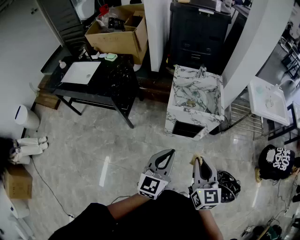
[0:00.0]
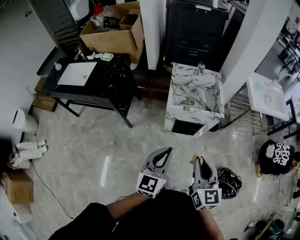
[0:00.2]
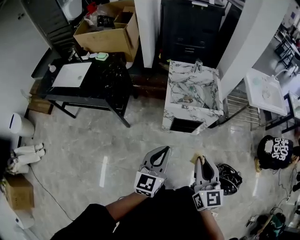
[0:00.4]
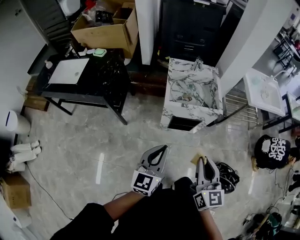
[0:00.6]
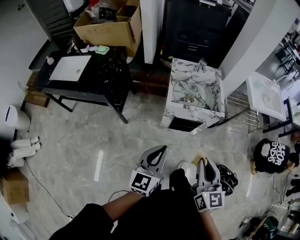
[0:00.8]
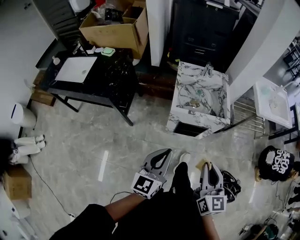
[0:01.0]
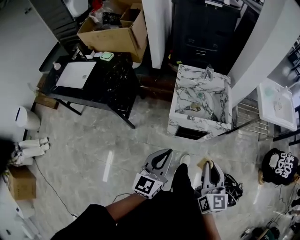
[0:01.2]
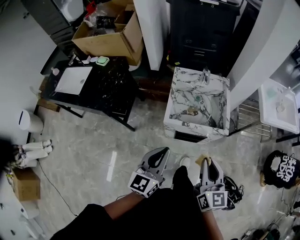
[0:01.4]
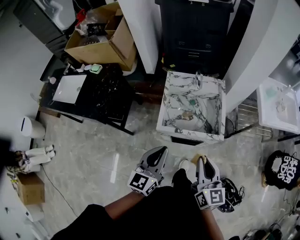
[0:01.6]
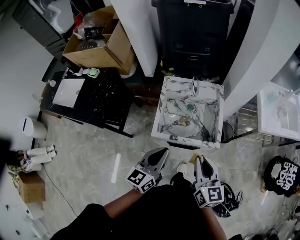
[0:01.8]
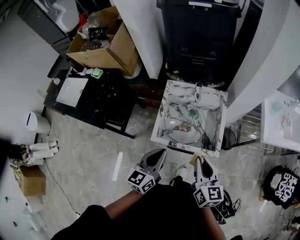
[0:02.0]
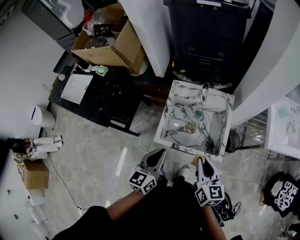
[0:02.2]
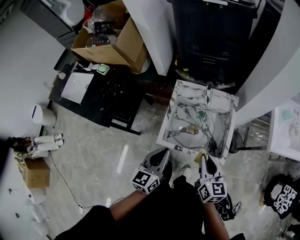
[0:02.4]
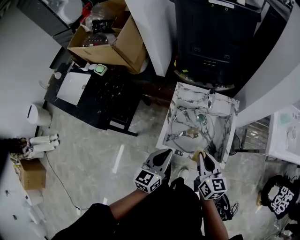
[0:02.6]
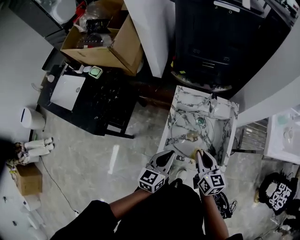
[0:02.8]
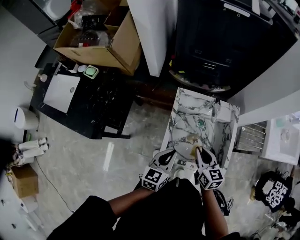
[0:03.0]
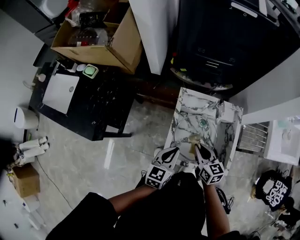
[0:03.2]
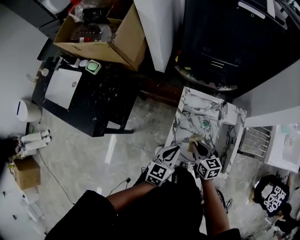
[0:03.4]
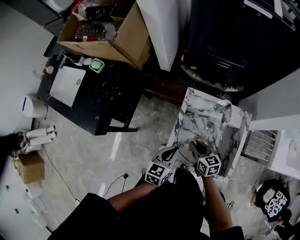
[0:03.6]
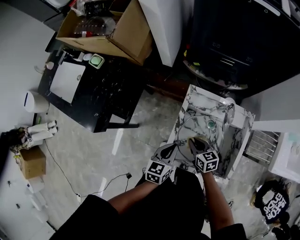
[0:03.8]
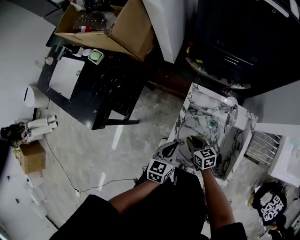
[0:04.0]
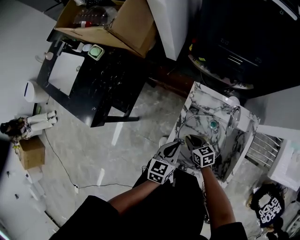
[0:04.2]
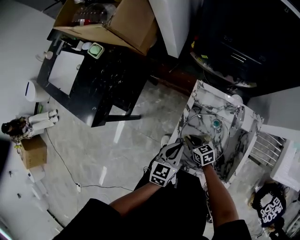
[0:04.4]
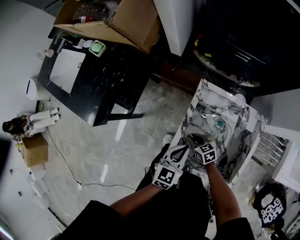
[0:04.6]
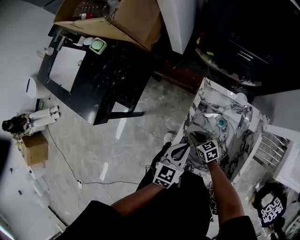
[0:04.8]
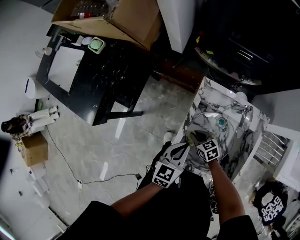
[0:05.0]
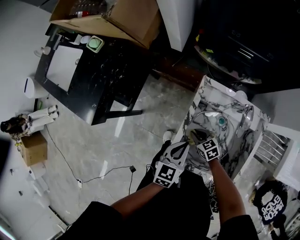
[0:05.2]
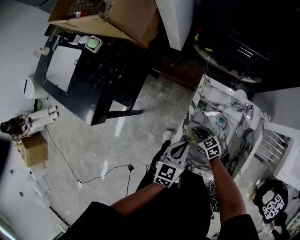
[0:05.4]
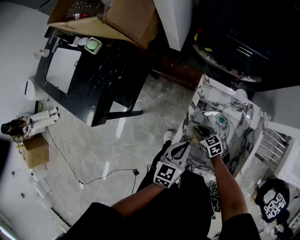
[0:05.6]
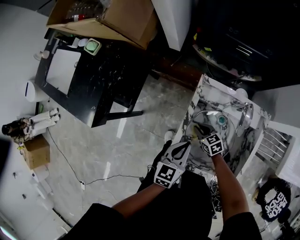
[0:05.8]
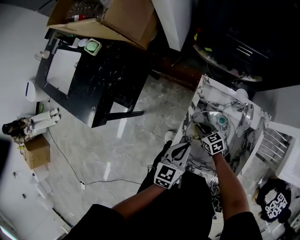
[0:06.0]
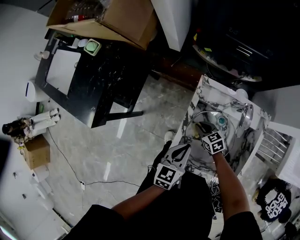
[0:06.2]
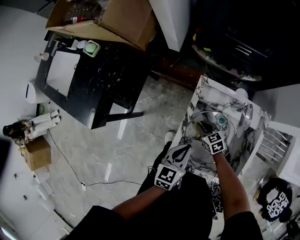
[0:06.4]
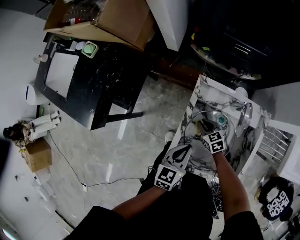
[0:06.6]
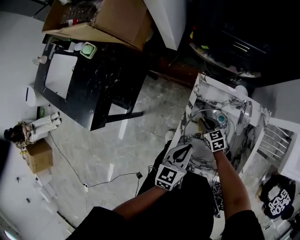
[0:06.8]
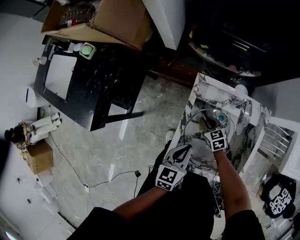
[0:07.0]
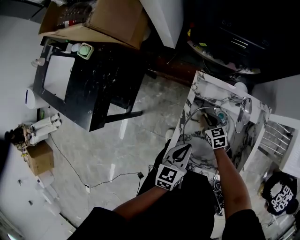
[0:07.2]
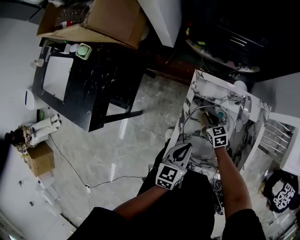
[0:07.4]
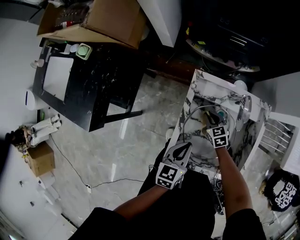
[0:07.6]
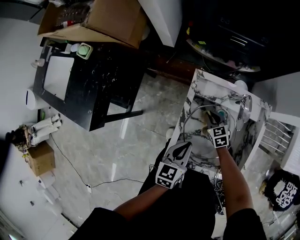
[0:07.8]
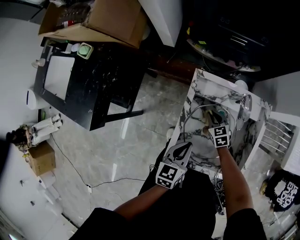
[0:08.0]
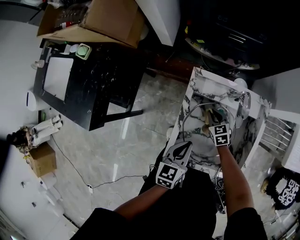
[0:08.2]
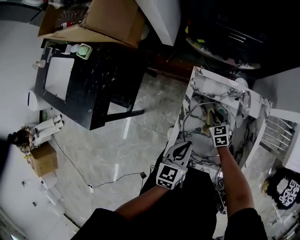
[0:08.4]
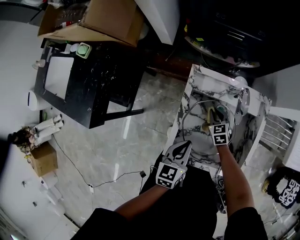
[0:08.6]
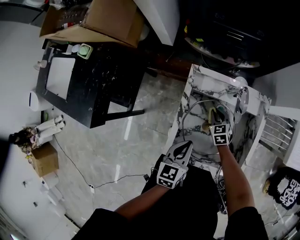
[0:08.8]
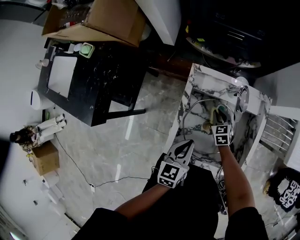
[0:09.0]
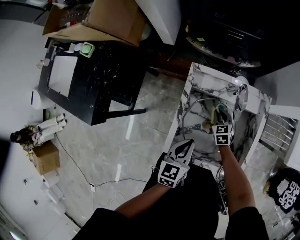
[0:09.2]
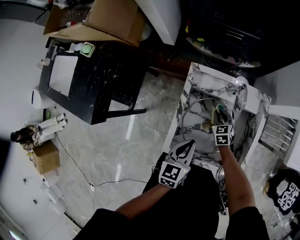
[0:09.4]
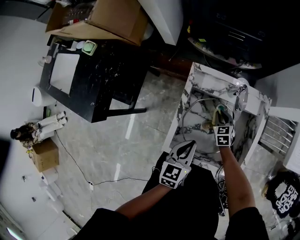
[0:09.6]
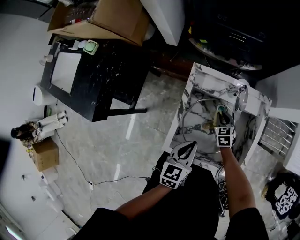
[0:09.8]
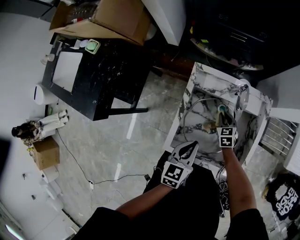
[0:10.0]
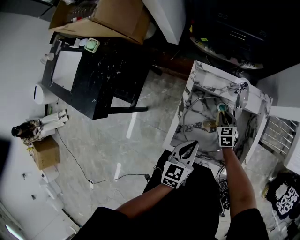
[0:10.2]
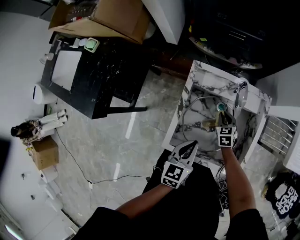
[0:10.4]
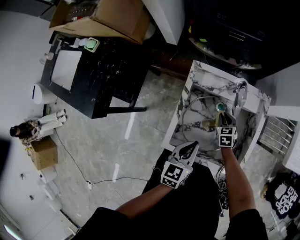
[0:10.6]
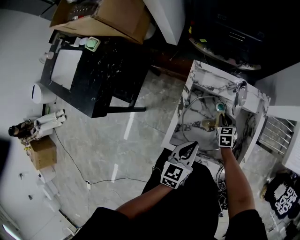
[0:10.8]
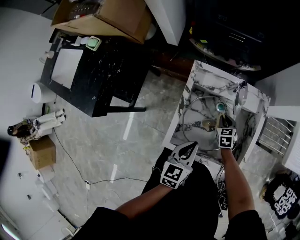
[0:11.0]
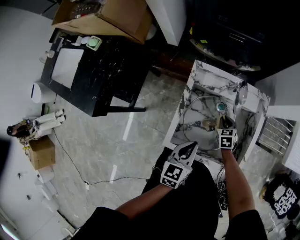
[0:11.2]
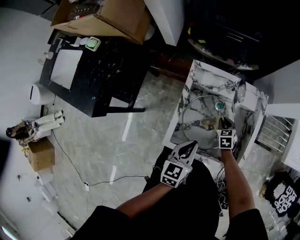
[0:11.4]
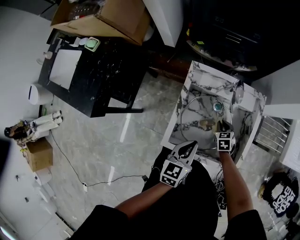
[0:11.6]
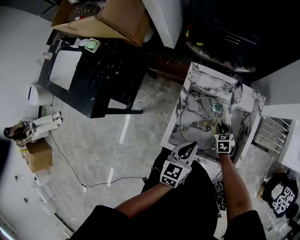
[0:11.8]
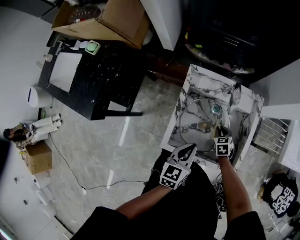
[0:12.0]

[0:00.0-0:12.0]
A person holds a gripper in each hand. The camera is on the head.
0:00.0 to 0:01.6: Both grippers move forward, some 25 cm.
0:01.6 to 0:03.0: The grippers both shift forward and downward by approximately 25 cm. The right gripper changes its angle by roughly 20 degrees.
0:03.0 to 0:04.4: The left gripper heads downward, covering about 10 cm. Meanwhile the right gripper heads downward, covering roughly 20 cm, and changes its angle by approximately 40 degrees.
0:04.4 to 0:06.0: The right gripper shifts by approximately 5 cm.
0:06.0 to 0:07.6: The right gripper heads to the right, covering some 5 cm.
0:07.6 to 0:09.0: The right gripper heads to the right, covering approximately 5 cm.
0:09.0 to 0:10.4: The grippers stay close to where they were, moving slightly.
0:10.4 to 0:12.0: The right gripper goes about 5 cm backward.

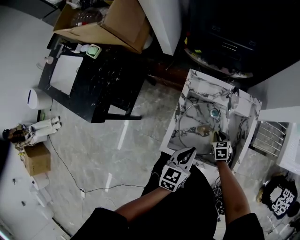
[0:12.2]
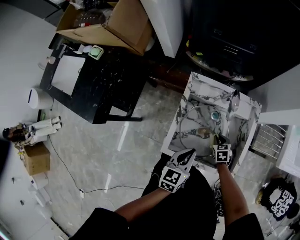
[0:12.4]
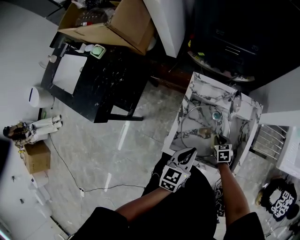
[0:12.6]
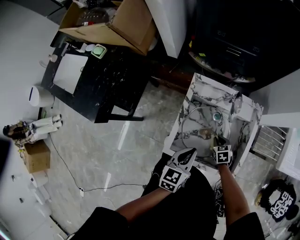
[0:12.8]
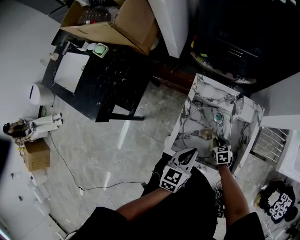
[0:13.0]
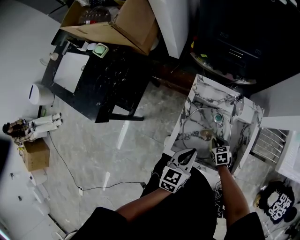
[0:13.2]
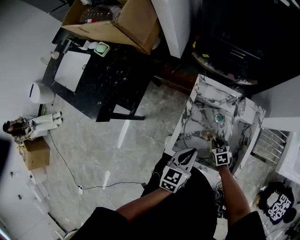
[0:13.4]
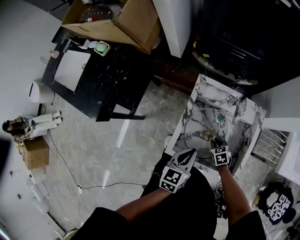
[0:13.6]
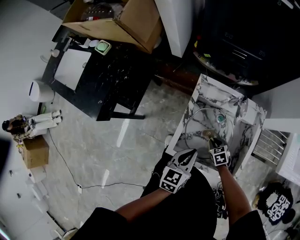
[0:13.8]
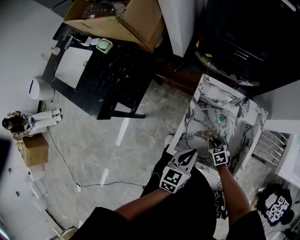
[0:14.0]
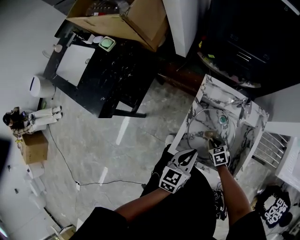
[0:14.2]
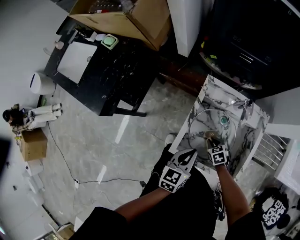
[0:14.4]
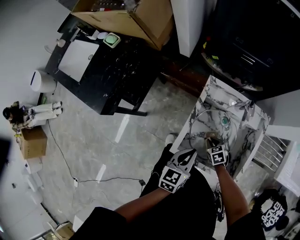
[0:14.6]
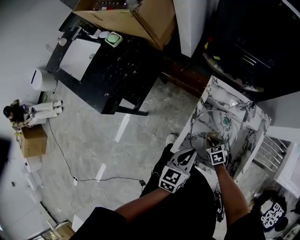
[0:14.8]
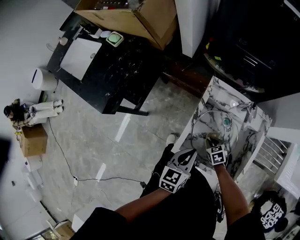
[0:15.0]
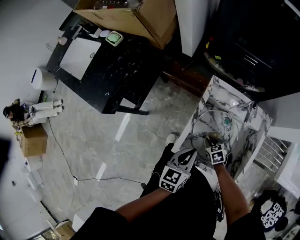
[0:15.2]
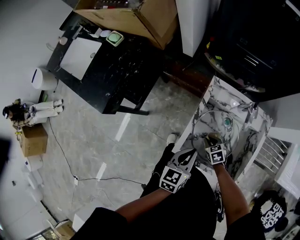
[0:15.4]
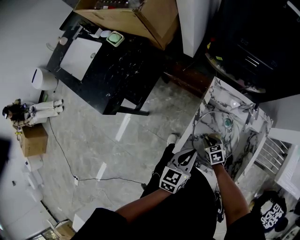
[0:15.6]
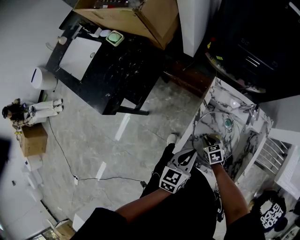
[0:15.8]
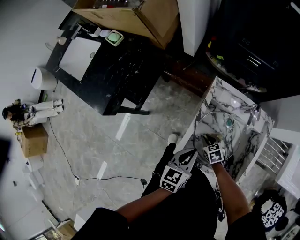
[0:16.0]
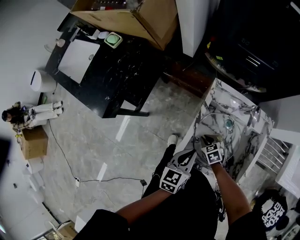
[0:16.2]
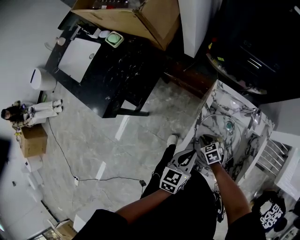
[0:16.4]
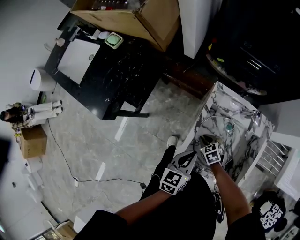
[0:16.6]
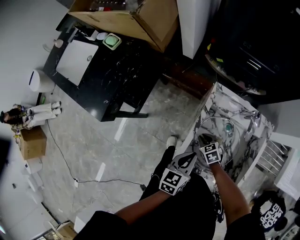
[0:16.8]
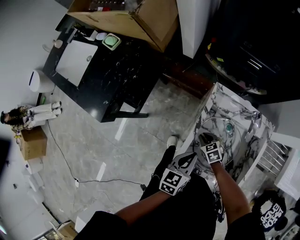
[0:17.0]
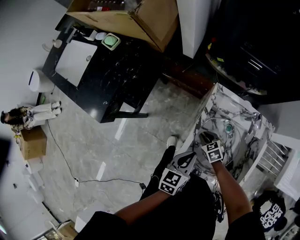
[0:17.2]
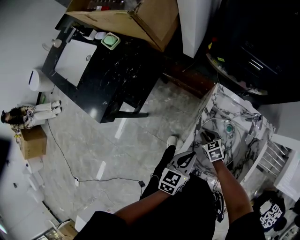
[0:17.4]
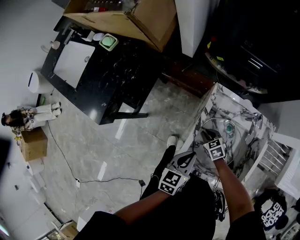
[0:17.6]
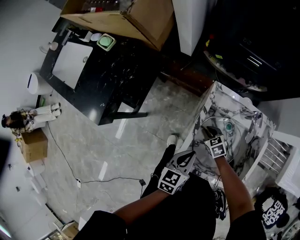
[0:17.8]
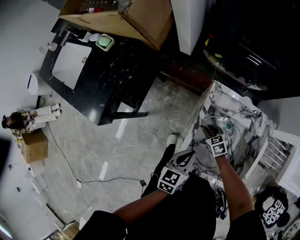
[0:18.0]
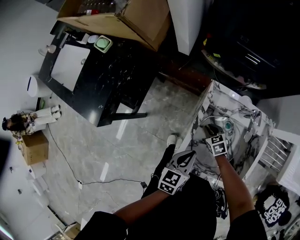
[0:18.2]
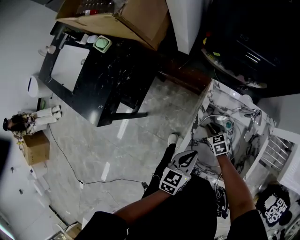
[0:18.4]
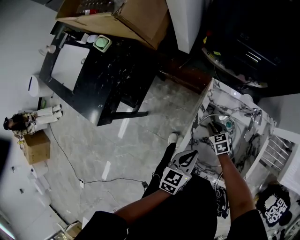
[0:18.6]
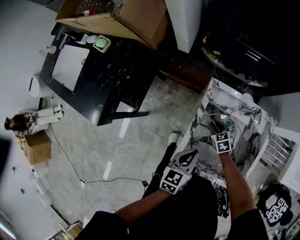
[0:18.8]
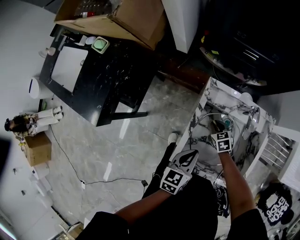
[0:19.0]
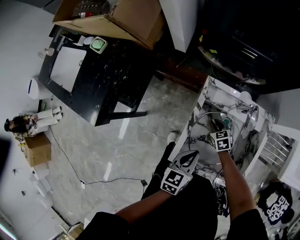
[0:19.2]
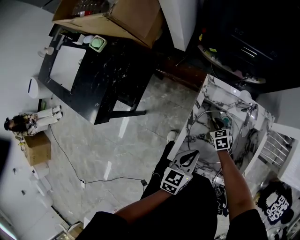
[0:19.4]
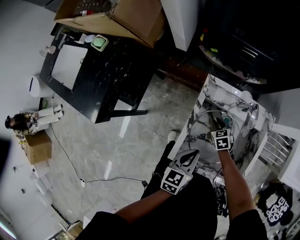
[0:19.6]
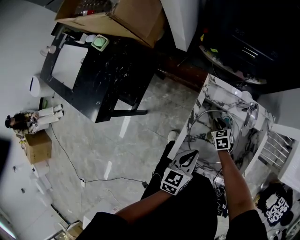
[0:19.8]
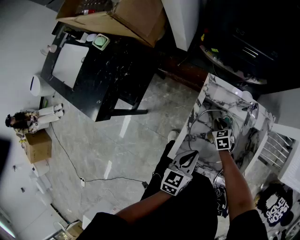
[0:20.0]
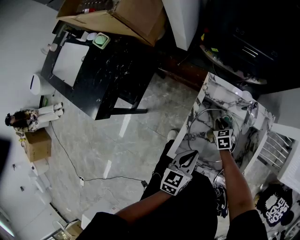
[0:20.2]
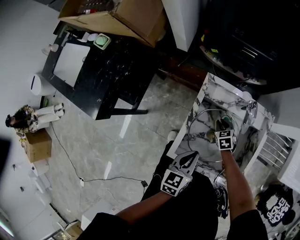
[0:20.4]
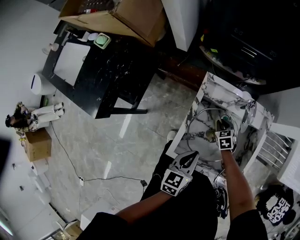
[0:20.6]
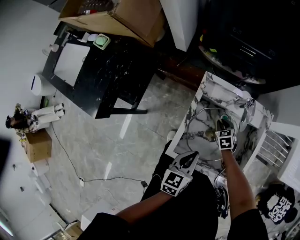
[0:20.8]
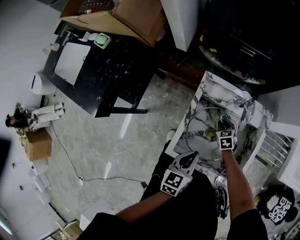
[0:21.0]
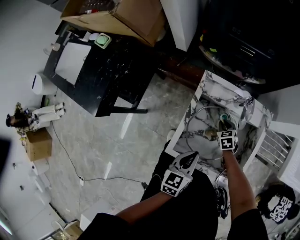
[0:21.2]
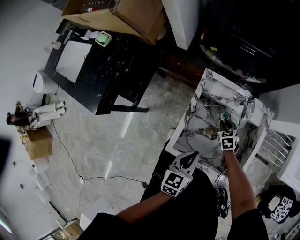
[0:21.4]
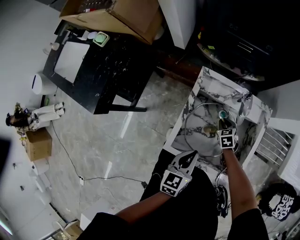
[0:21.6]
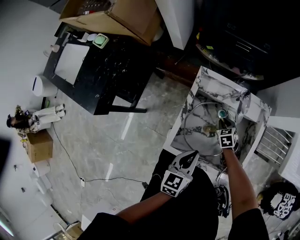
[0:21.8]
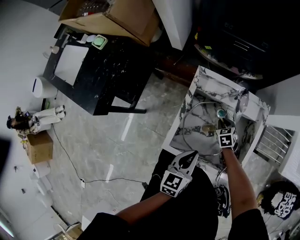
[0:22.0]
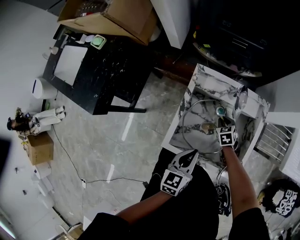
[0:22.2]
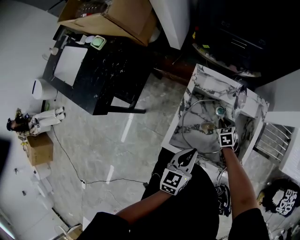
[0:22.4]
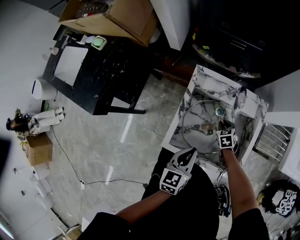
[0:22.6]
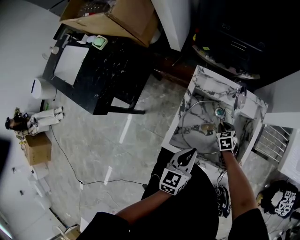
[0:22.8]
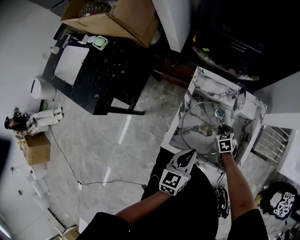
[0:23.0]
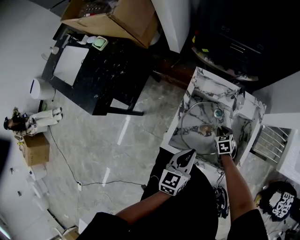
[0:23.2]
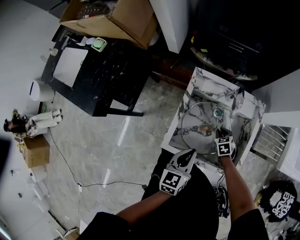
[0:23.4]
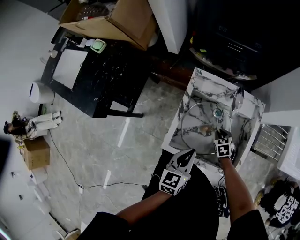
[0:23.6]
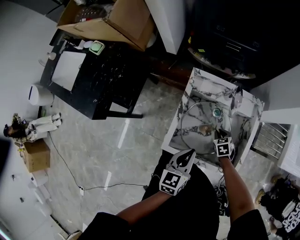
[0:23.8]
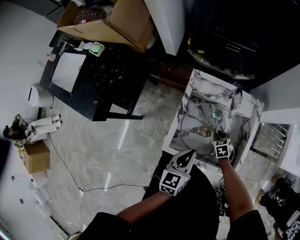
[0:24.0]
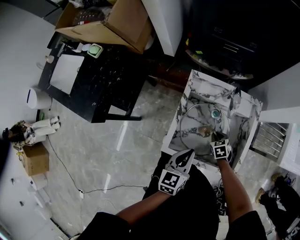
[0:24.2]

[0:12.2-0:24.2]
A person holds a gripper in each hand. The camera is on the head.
0:12.2 to 0:13.8: The right gripper is displaced to the left by some 5 cm.
0:13.8 to 0:15.2: The right gripper heads to the left, covering roughly 5 cm.
0:15.2 to 0:16.6: The right gripper moves to the left, some 5 cm.
0:16.6 to 0:18.2: The right gripper goes about 5 cm forward.
0:18.2 to 0:19.8: The right gripper heads to the right, covering about 5 cm.
0:19.8 to 0:21.2: The right gripper travels to the right by about 5 cm.
0:21.2 to 0:22.6: The grippers stay close to where they were, moving slightly.
0:22.6 to 0:24.2: The right gripper travels backward by roughly 5 cm.
